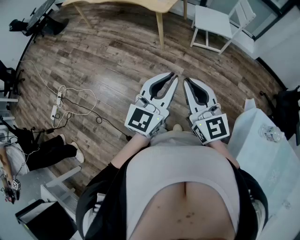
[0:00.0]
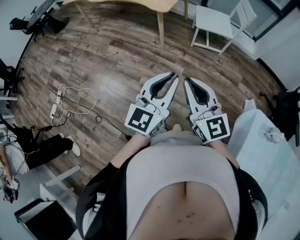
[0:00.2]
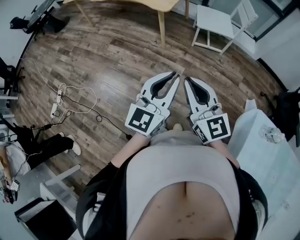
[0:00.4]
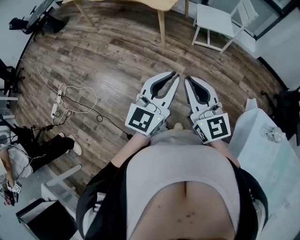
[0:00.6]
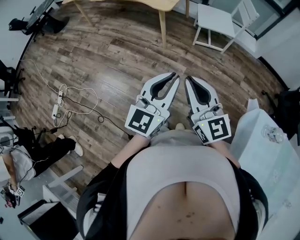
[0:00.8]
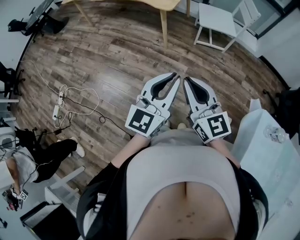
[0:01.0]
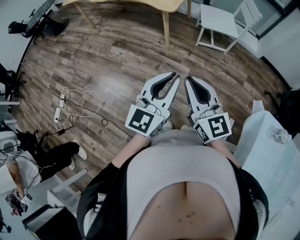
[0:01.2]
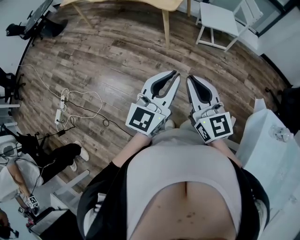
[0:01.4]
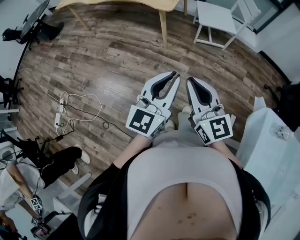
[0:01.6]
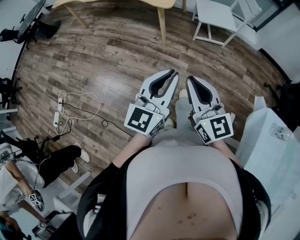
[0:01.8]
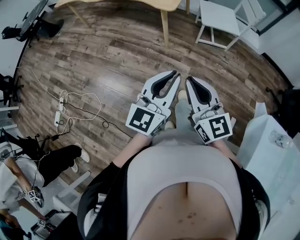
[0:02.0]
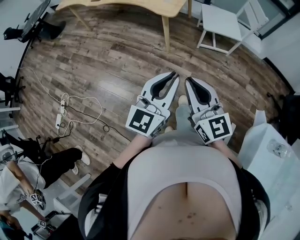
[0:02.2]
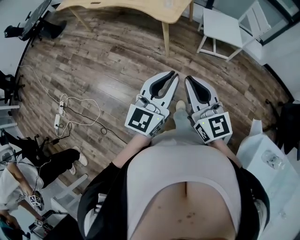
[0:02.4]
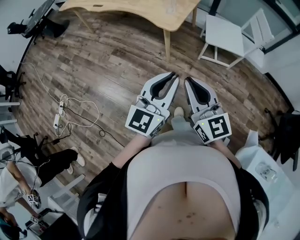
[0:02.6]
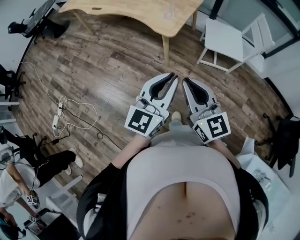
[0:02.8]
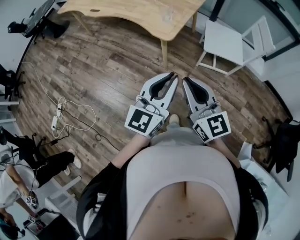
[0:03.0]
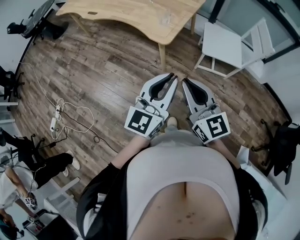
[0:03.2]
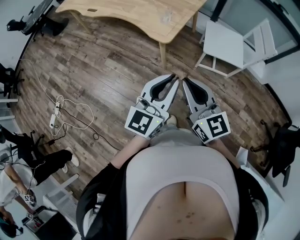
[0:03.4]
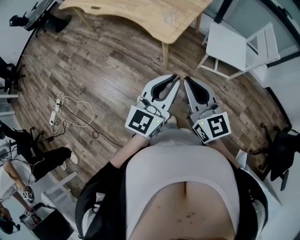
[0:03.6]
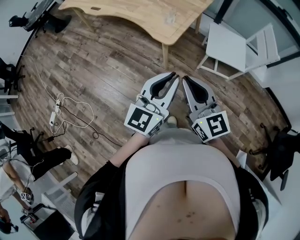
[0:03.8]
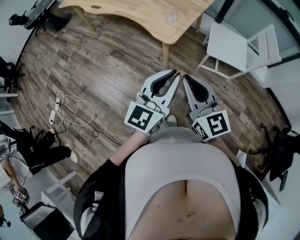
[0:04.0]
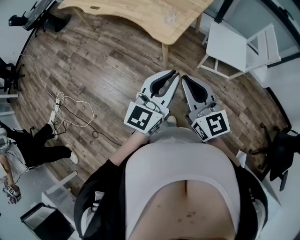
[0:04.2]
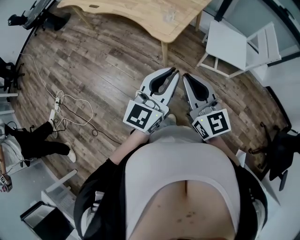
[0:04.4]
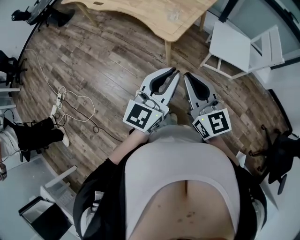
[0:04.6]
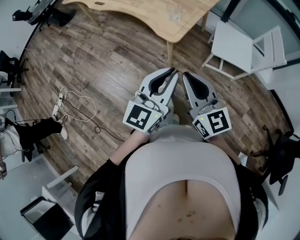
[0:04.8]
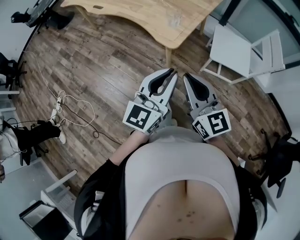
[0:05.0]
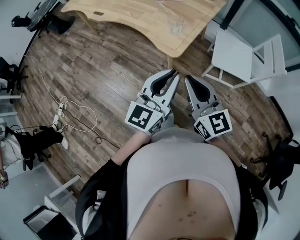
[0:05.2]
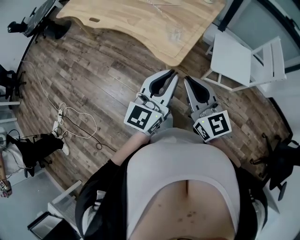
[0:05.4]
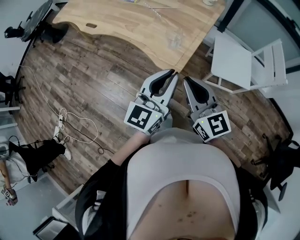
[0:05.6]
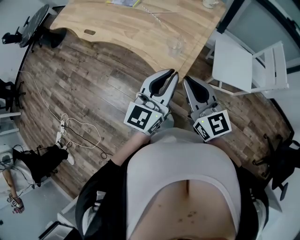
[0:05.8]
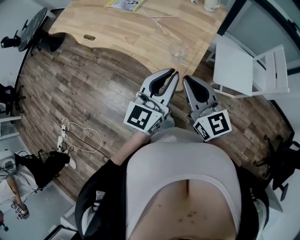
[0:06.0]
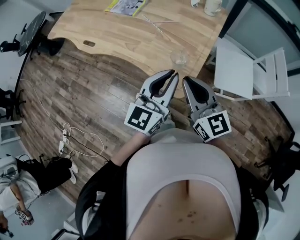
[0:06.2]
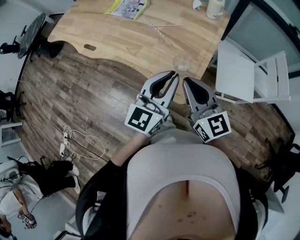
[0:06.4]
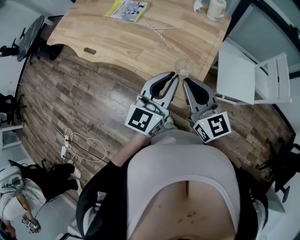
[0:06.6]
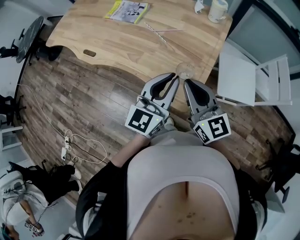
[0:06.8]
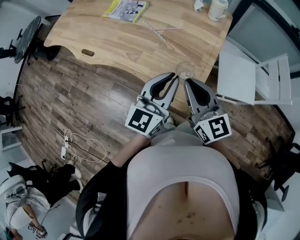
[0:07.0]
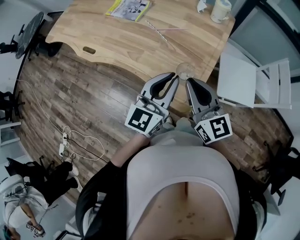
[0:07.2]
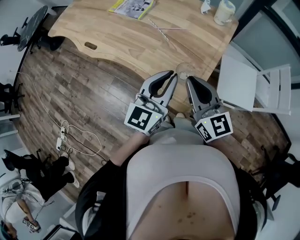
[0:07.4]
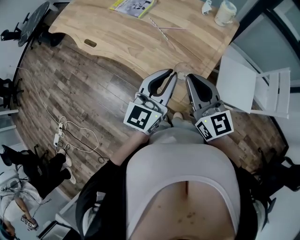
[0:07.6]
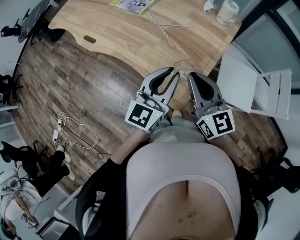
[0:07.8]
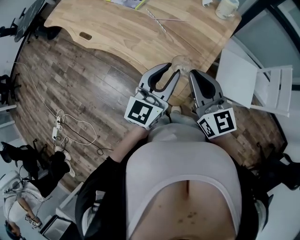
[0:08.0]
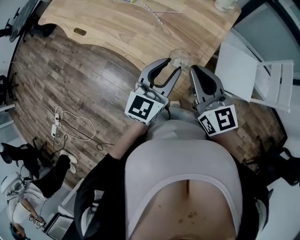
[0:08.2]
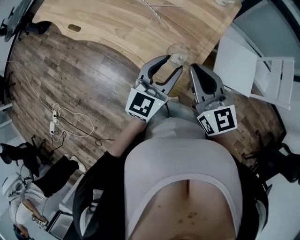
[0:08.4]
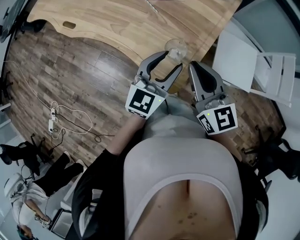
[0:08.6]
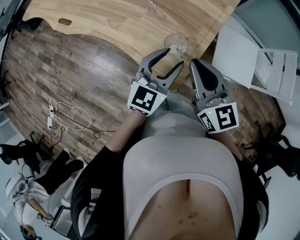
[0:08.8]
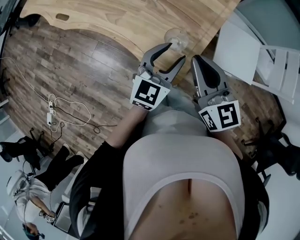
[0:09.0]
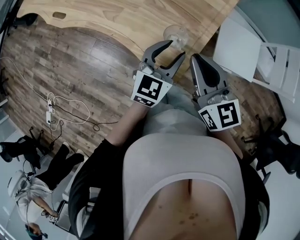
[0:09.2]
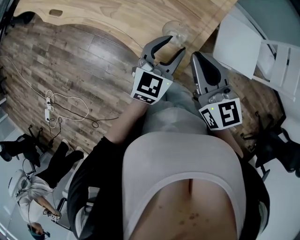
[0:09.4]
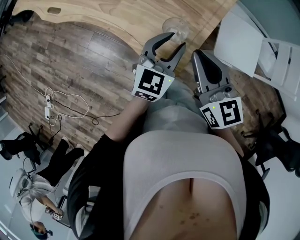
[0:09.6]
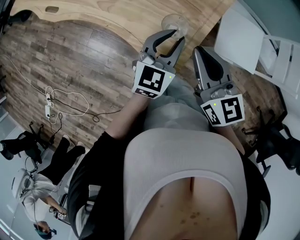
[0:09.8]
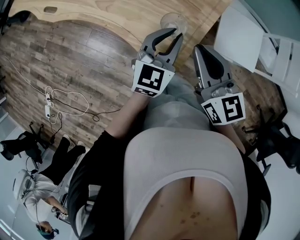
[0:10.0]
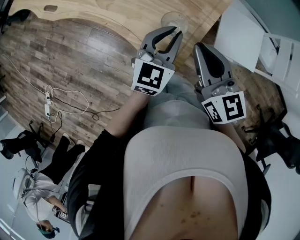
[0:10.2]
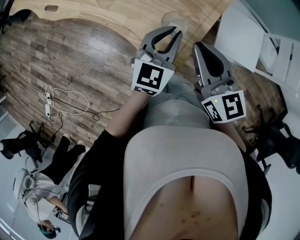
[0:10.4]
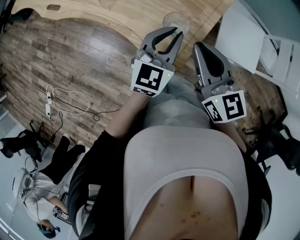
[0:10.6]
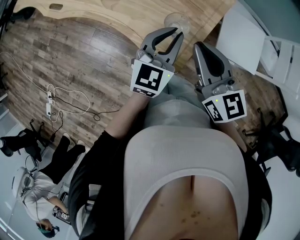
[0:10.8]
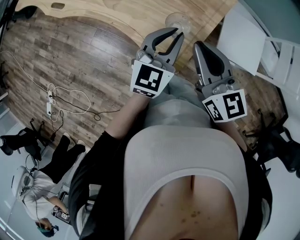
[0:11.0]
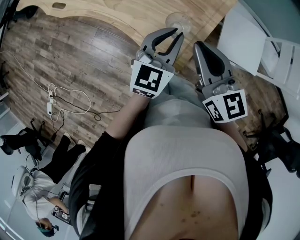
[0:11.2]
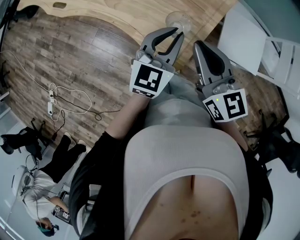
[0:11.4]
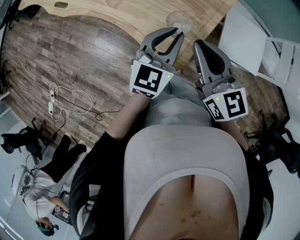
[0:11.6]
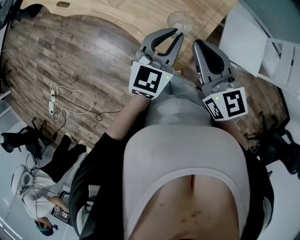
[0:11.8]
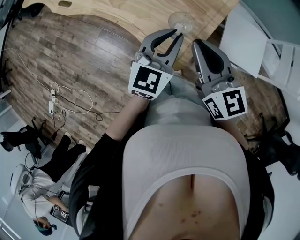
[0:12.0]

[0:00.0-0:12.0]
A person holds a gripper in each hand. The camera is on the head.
0:00.0 to 0:01.6: The two grippers go approximately 5 cm to the left.
0:01.6 to 0:03.0: Both grippers travel together forward, about 25 cm.
0:03.0 to 0:04.4: The grippers both shift forward by some 5 cm.
0:04.4 to 0:06.0: Both grippers move forward, some 25 cm.
0:06.0 to 0:07.6: The two grippers go some 10 cm forward.
0:07.6 to 0:09.0: The left gripper moves downward, some 15 cm, and opens up. Meanwhile the right gripper is displaced downward by roughly 5 cm.
0:09.0 to 0:10.4: The left gripper closes.
0:10.4 to 0:12.0: The left gripper changes place by roughly 5 cm.

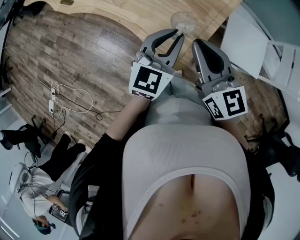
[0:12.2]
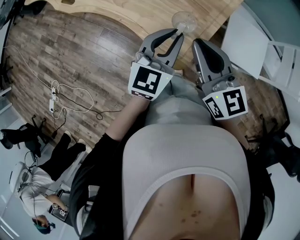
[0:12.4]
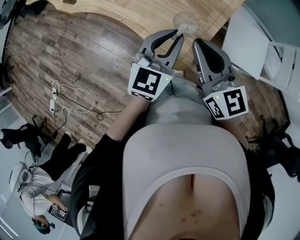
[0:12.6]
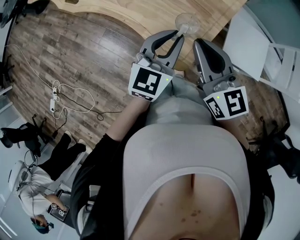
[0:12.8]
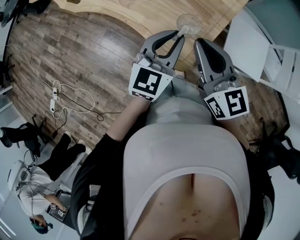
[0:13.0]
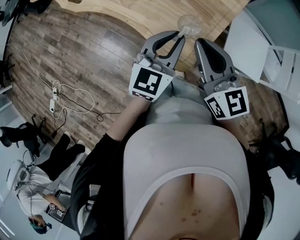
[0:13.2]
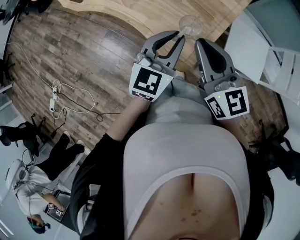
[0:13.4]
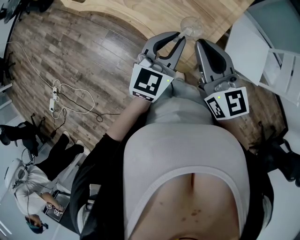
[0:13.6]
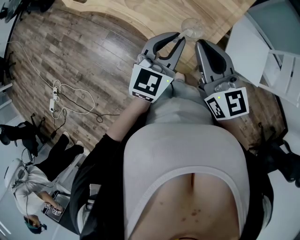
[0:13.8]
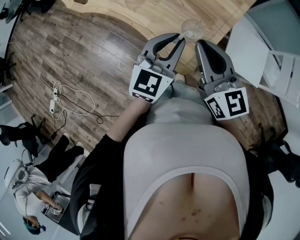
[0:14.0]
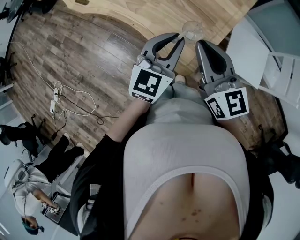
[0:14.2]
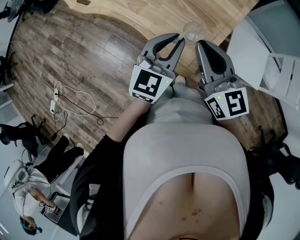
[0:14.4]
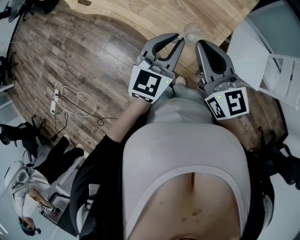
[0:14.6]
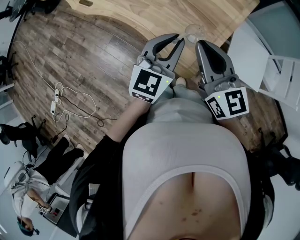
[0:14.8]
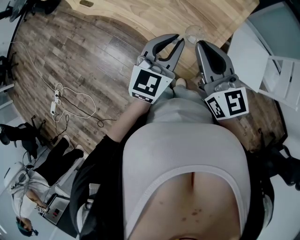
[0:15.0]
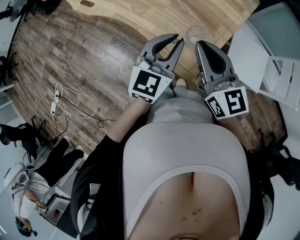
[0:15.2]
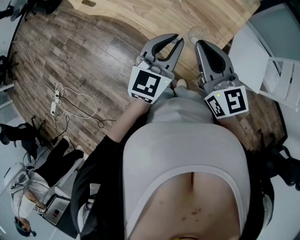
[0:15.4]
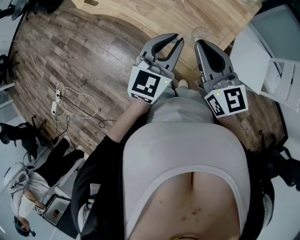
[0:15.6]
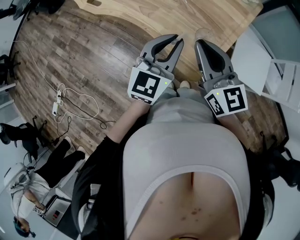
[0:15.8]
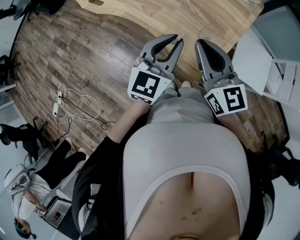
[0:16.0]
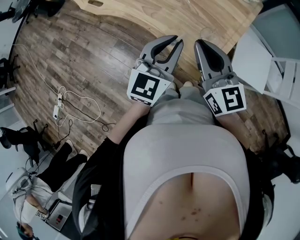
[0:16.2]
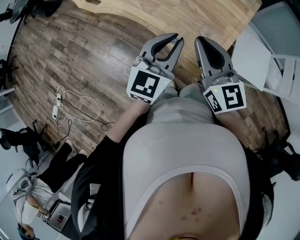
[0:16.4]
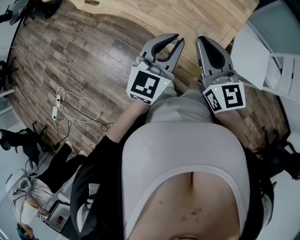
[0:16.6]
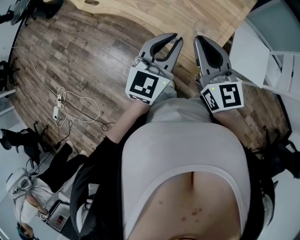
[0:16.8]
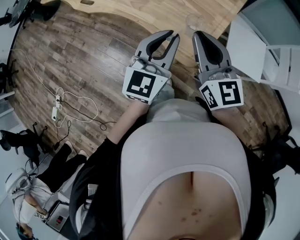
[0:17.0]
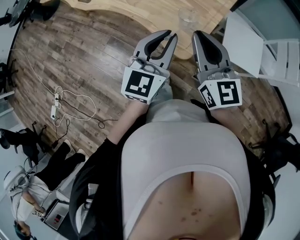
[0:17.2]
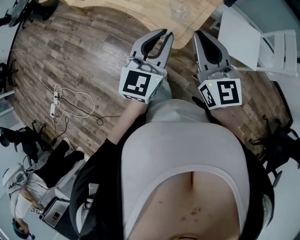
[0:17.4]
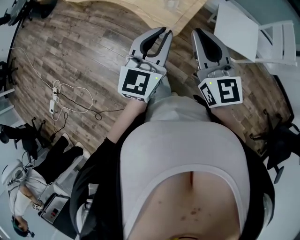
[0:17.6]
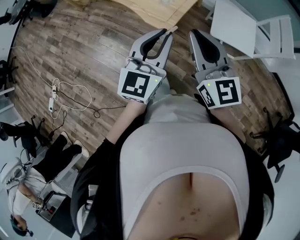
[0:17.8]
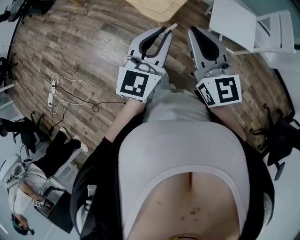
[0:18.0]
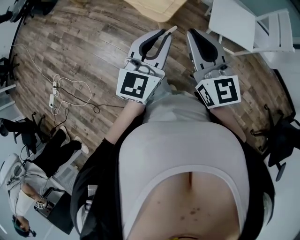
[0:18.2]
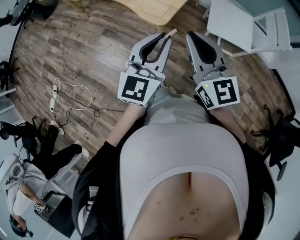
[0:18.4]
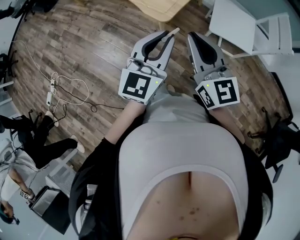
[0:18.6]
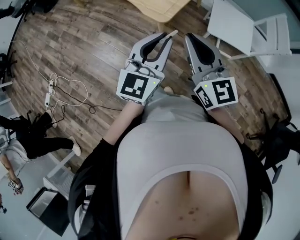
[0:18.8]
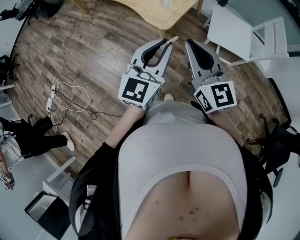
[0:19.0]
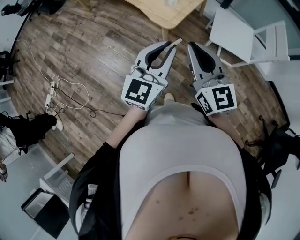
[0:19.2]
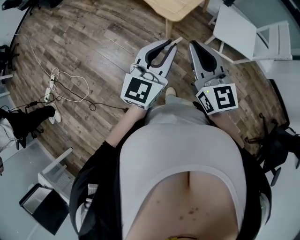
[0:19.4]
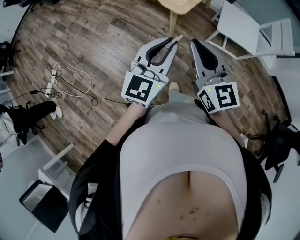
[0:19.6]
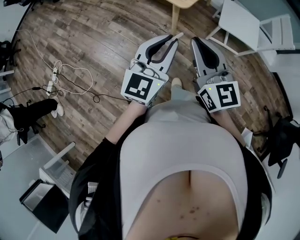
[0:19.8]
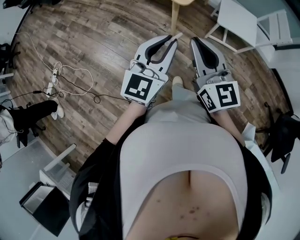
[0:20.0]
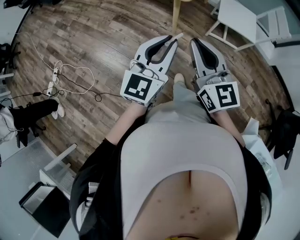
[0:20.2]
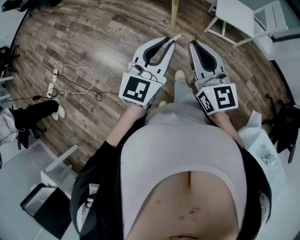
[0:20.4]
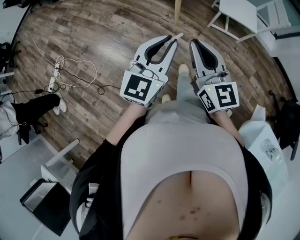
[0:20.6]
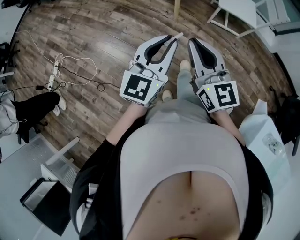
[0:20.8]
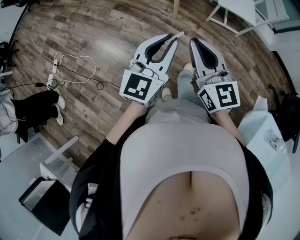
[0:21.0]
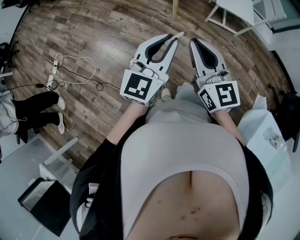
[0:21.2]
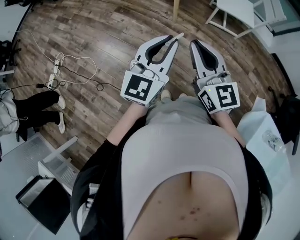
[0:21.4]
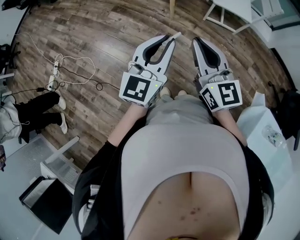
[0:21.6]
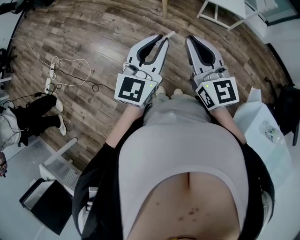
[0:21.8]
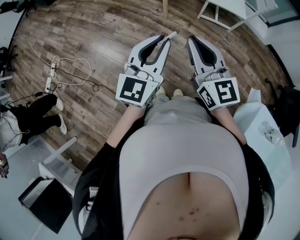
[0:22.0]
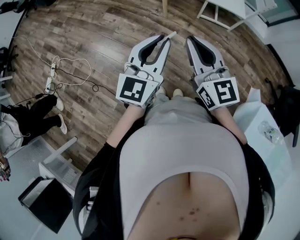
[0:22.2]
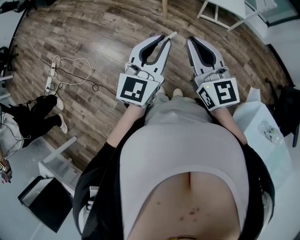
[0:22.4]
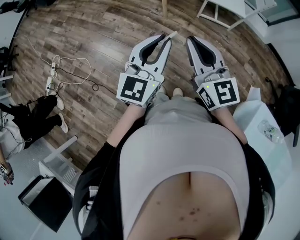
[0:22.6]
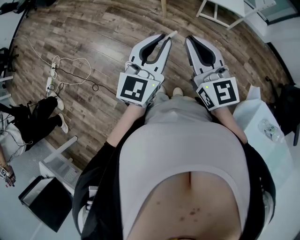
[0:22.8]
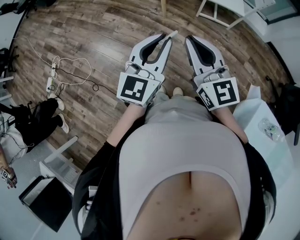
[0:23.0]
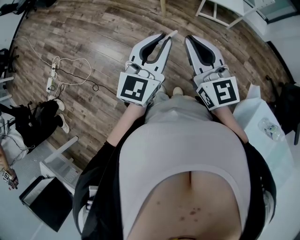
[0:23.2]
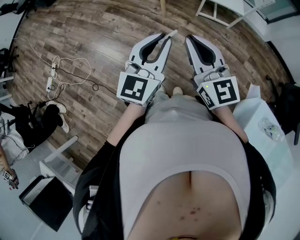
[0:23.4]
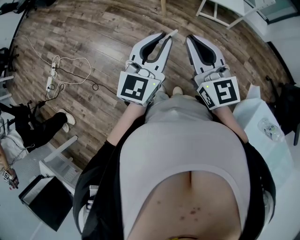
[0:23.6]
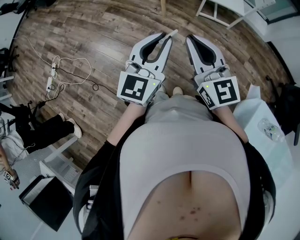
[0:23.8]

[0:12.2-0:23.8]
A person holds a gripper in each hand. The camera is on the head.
0:12.2 to 0:15.0: There are only small adjustments of the grippers.
0:15.0 to 0:16.6: The left gripper moves about 5 cm.
0:16.6 to 0:18.0: Both grippers move backward and to the right, roughly 25 cm.
0:18.0 to 0:19.4: The grippers both shift backward by some 10 cm.
0:19.4 to 0:21.0: The two grippers go approximately 25 cm backward.
0:21.0 to 0:22.4: The grippers both shift to the right by about 5 cm.
0:22.4 to 0:23.8: The grippers move only a little.

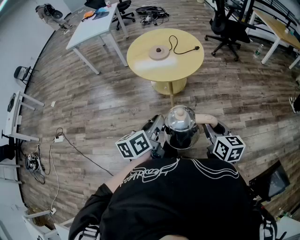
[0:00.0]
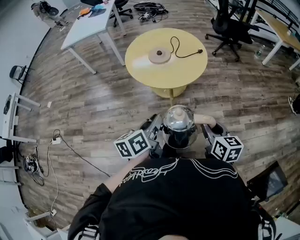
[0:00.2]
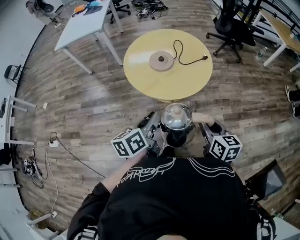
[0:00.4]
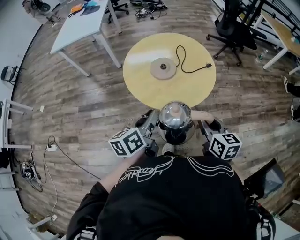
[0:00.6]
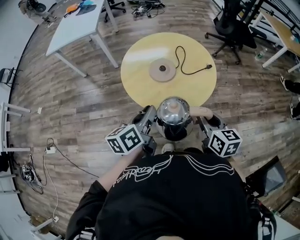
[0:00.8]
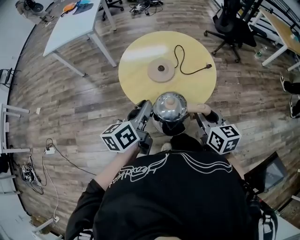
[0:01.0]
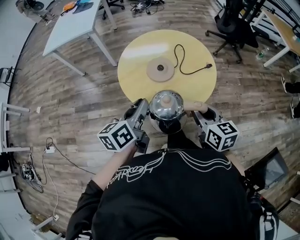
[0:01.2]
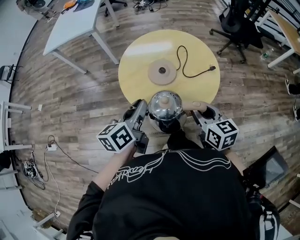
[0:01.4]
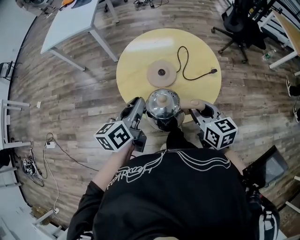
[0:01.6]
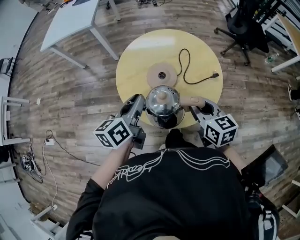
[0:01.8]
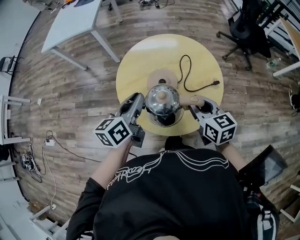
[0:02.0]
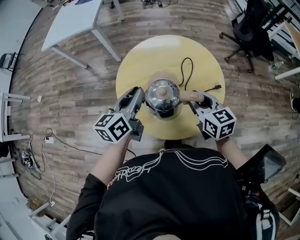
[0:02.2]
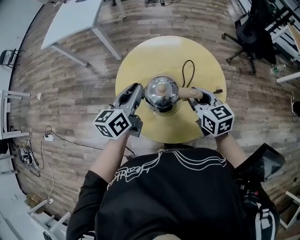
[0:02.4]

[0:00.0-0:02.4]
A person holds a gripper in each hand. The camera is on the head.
0:00.0 to 0:01.2: Both grippers move forward, approximately 35 cm.
0:01.2 to 0:02.4: The grippers both shift forward by roughly 20 cm.
